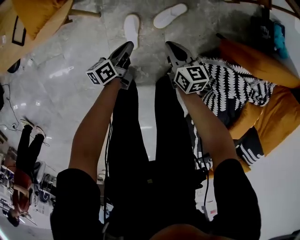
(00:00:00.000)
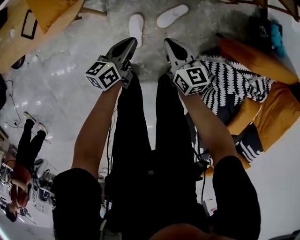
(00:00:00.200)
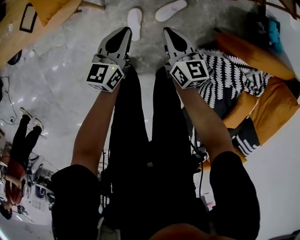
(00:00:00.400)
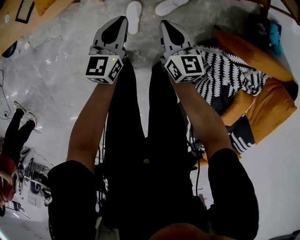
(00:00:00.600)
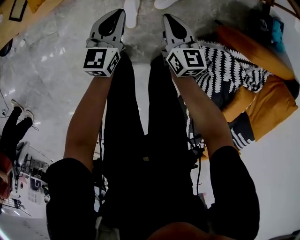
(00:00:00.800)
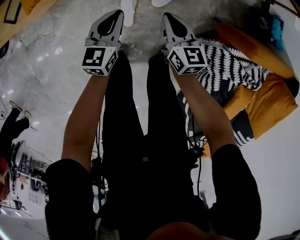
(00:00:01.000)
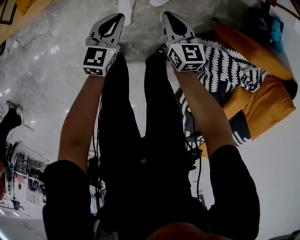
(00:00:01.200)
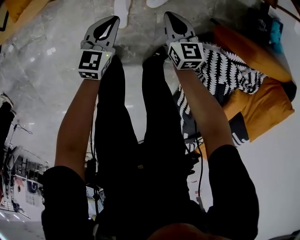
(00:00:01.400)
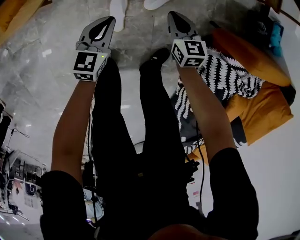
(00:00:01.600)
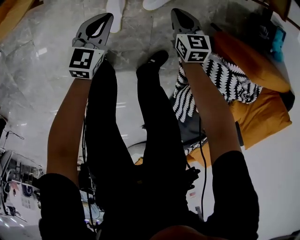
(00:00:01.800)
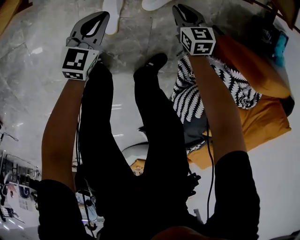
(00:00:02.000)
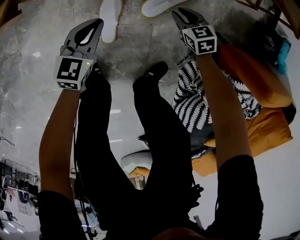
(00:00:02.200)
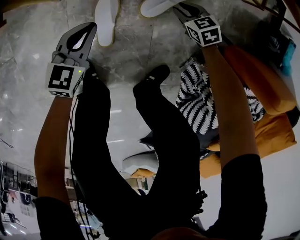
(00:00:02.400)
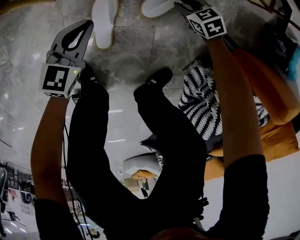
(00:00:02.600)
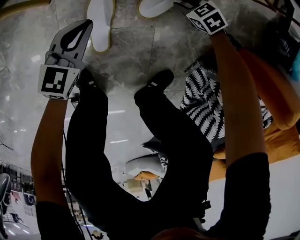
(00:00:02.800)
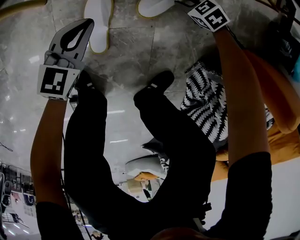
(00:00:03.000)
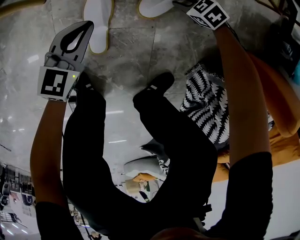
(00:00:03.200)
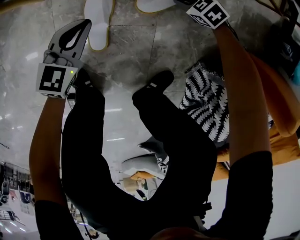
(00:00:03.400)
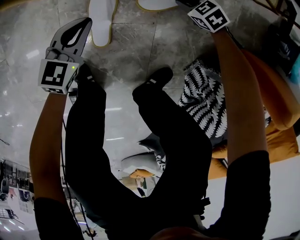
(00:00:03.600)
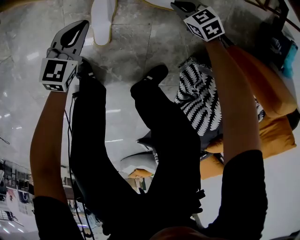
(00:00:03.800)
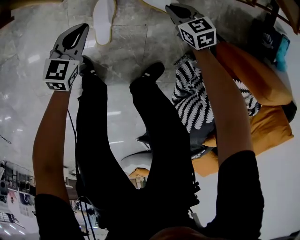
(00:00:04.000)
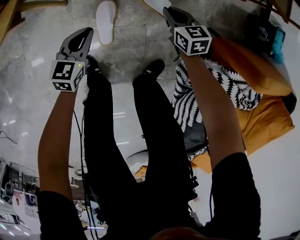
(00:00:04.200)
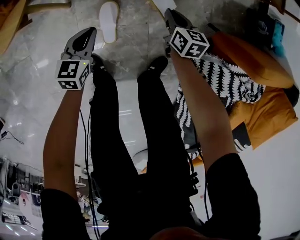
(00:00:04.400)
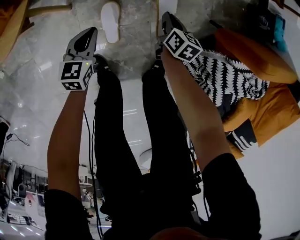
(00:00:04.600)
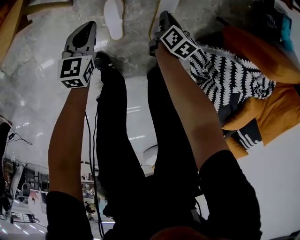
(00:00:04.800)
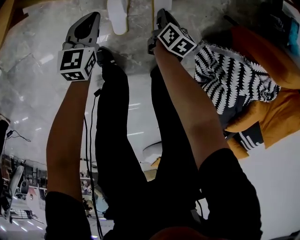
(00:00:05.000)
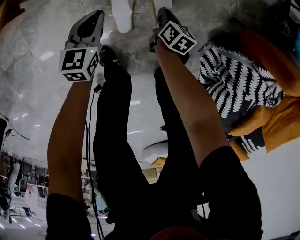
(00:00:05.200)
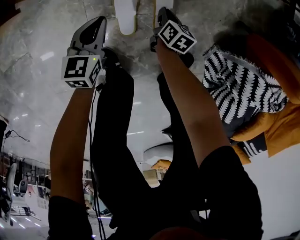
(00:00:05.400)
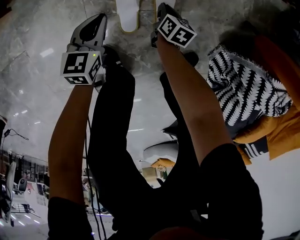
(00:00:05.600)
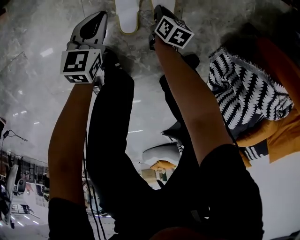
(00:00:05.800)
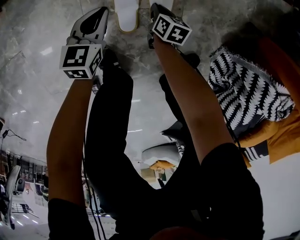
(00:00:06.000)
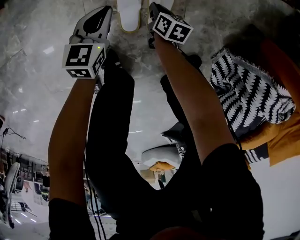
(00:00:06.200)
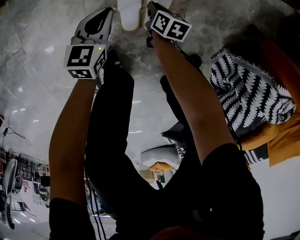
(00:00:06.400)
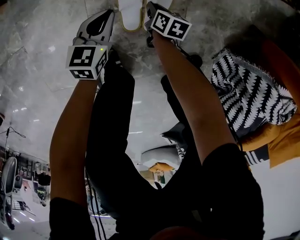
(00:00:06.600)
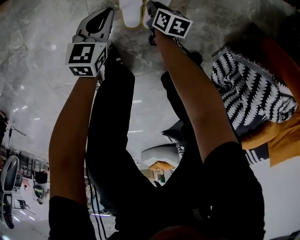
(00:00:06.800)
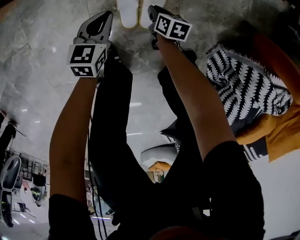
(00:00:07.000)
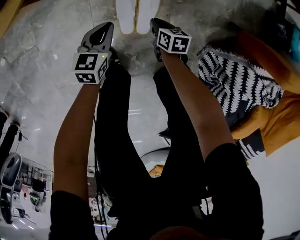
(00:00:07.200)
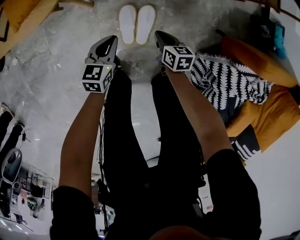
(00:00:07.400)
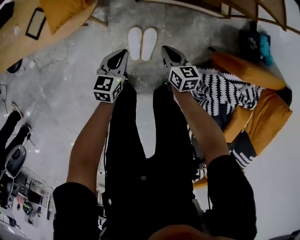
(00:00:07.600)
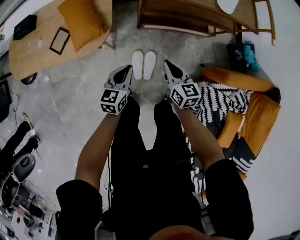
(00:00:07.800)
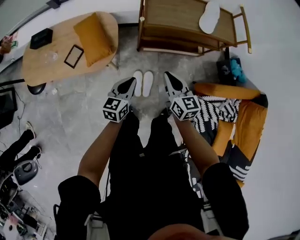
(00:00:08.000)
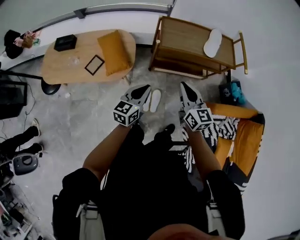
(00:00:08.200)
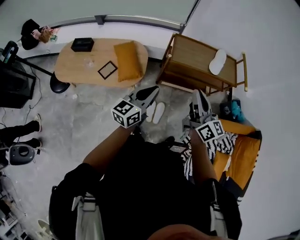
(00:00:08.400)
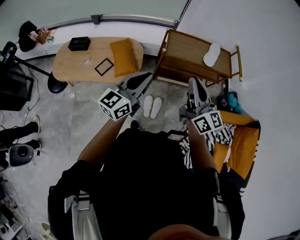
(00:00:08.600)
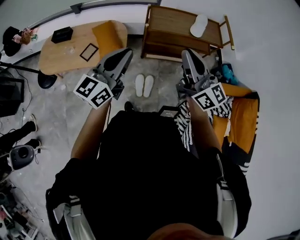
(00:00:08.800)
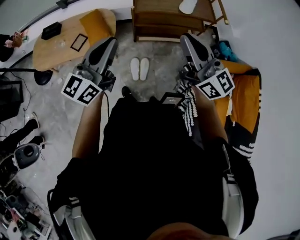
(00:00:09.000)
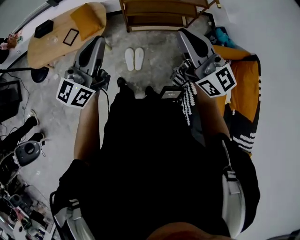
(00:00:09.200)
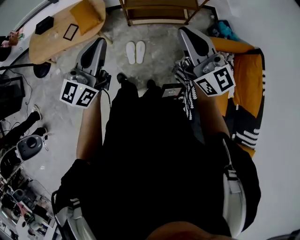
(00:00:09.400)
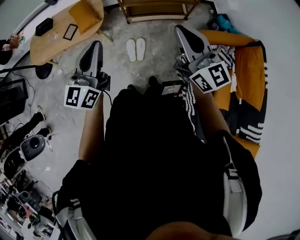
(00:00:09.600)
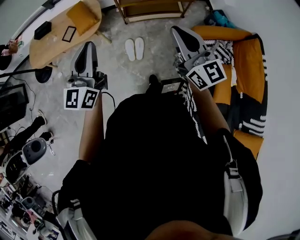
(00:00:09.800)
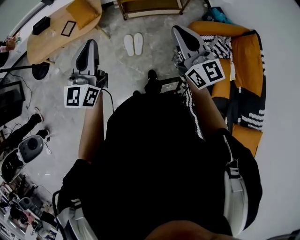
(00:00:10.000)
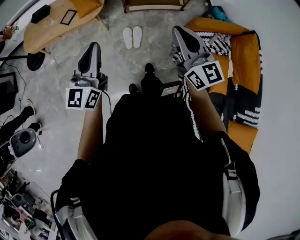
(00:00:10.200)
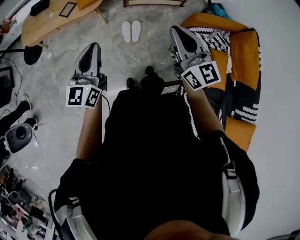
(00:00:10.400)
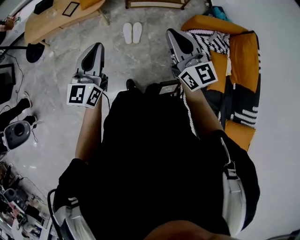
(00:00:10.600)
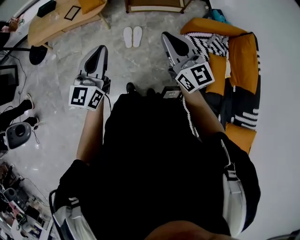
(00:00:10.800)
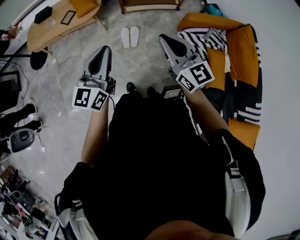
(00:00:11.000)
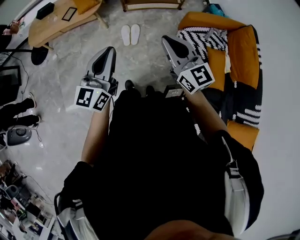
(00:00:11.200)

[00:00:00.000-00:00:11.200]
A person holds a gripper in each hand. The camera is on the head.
00:00:00.000 to 00:00:01.600: The right gripper goes some 5 cm forward, and travels upward and back again, about 10 cm each way; the left gripper moves approximately 15 cm upward and comes back, and rotates around the line of its fingers by roughly 50 degrees, clockwise from behind.
00:00:01.600 to 00:00:03.200: The right gripper goes approximately 35 cm downward, swivels some 60 degrees, and opens; the left gripper goes about 25 cm downward.
00:00:03.200 to 00:00:04.800: The right gripper is displaced upward by approximately 20 cm, rolls clockwise, seen from behind, by about 90 degrees, and closes. Meanwhile the left gripper moves upward, some 15 cm.
00:00:04.800 to 00:00:06.400: The left gripper is displaced downward and backward by roughly 15 cm, while the right gripper shifts about 25 cm downward and to the left, and turns by approximately 20 degrees.
00:00:06.400 to 00:00:08.000: Both grippers travel together upward, some 70 cm. The right gripper angles its fingers upward, by approximately 30 degrees.
00:00:08.000 to 00:00:09.600: The right gripper is displaced upward, backward and to the right by some 40 cm, and angles its fingers upward, by some 30 degrees. Meanwhile the left gripper moves upward and backward, roughly 40 cm, and changes its angle by some 30 degrees.
00:00:09.600 to 00:00:11.200: The two grippers go roughly 20 cm backward.

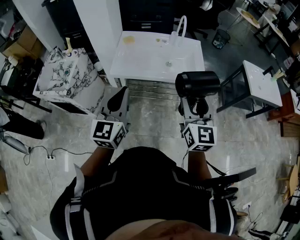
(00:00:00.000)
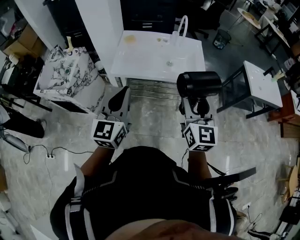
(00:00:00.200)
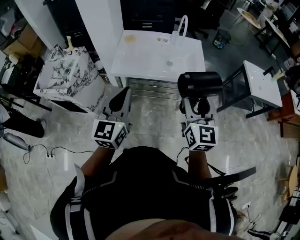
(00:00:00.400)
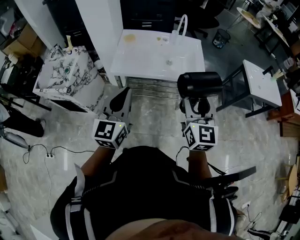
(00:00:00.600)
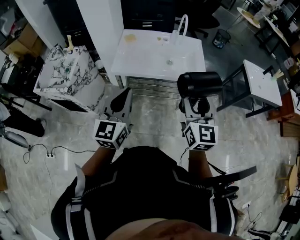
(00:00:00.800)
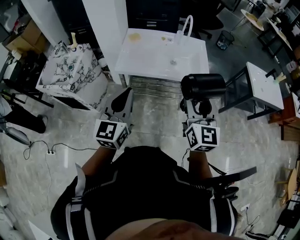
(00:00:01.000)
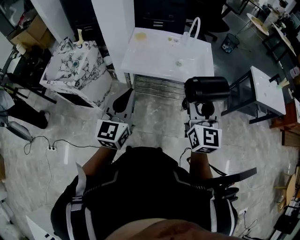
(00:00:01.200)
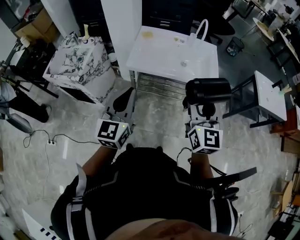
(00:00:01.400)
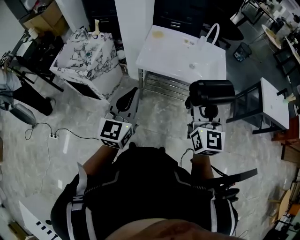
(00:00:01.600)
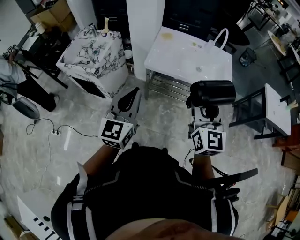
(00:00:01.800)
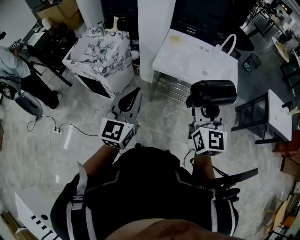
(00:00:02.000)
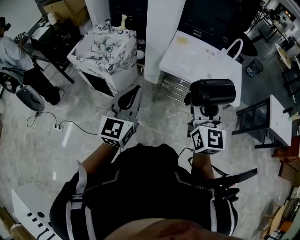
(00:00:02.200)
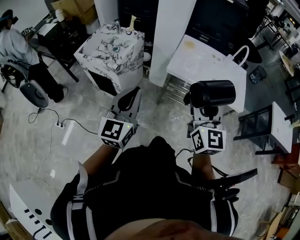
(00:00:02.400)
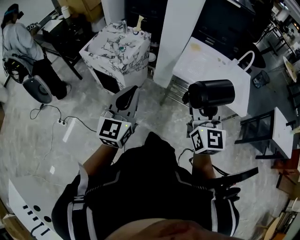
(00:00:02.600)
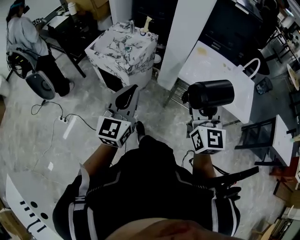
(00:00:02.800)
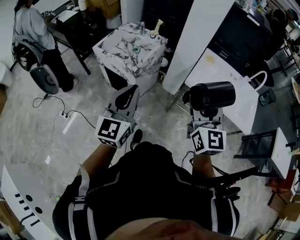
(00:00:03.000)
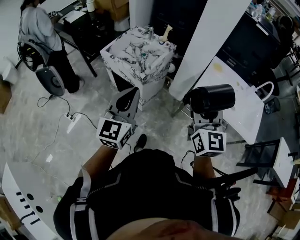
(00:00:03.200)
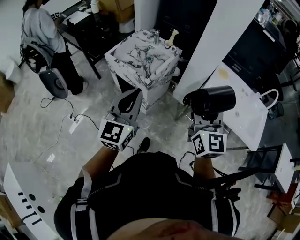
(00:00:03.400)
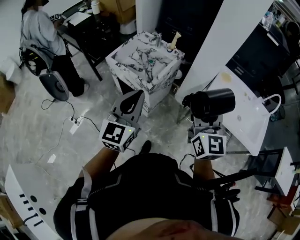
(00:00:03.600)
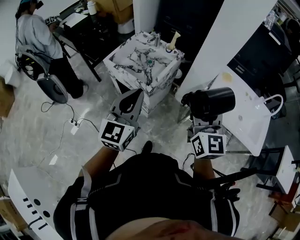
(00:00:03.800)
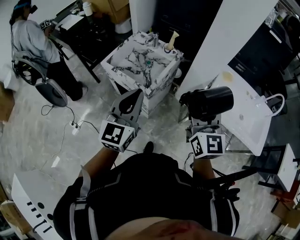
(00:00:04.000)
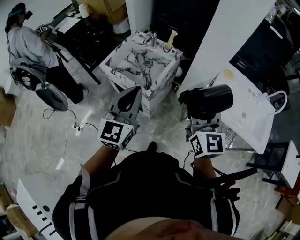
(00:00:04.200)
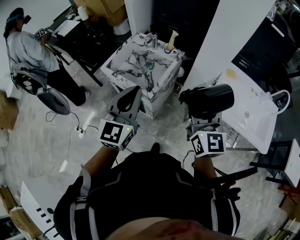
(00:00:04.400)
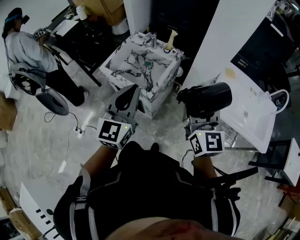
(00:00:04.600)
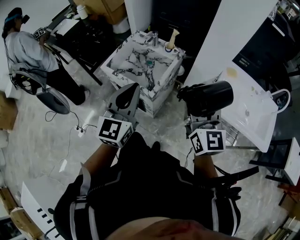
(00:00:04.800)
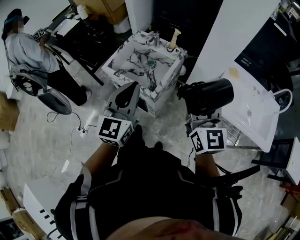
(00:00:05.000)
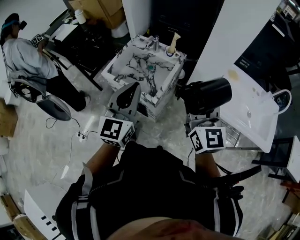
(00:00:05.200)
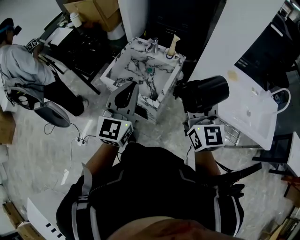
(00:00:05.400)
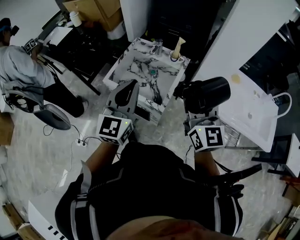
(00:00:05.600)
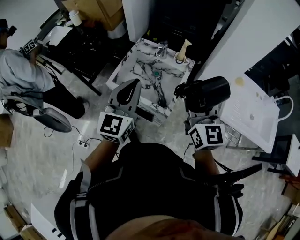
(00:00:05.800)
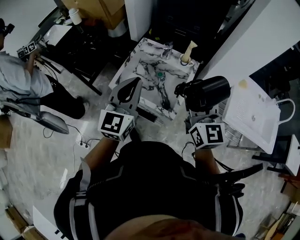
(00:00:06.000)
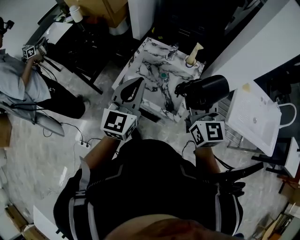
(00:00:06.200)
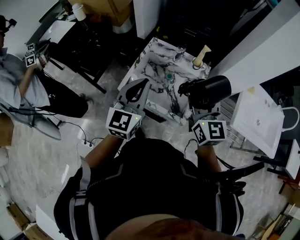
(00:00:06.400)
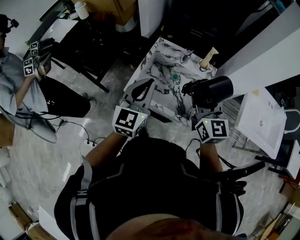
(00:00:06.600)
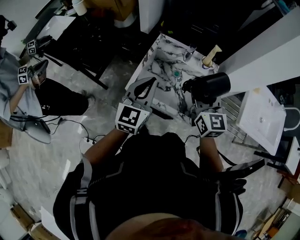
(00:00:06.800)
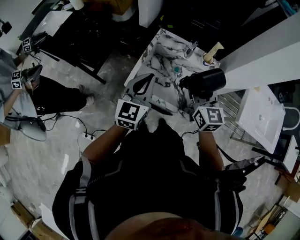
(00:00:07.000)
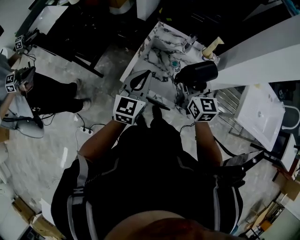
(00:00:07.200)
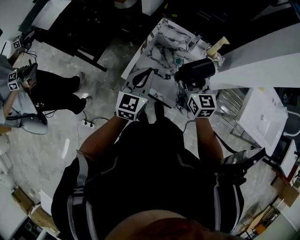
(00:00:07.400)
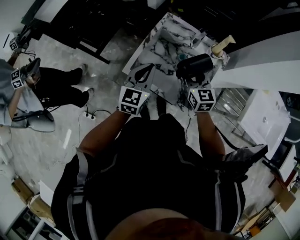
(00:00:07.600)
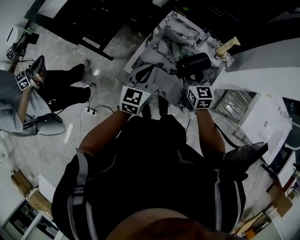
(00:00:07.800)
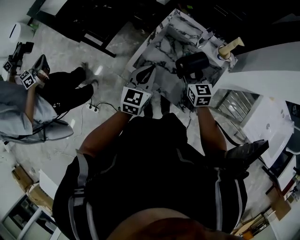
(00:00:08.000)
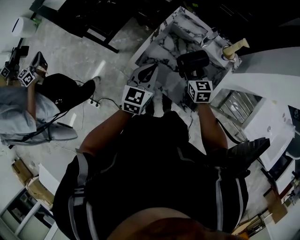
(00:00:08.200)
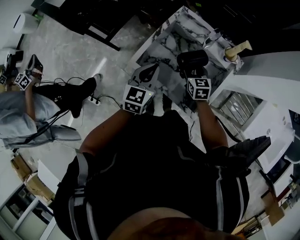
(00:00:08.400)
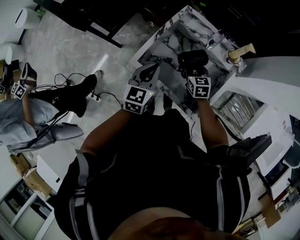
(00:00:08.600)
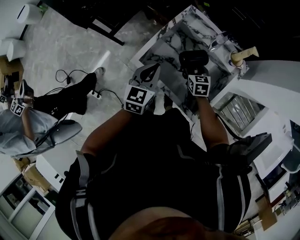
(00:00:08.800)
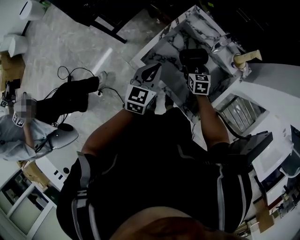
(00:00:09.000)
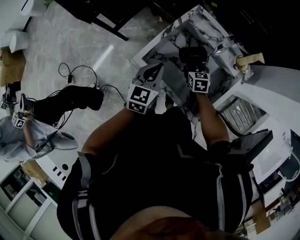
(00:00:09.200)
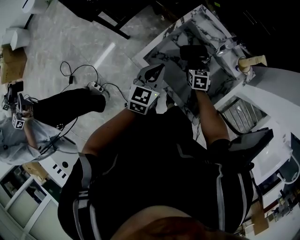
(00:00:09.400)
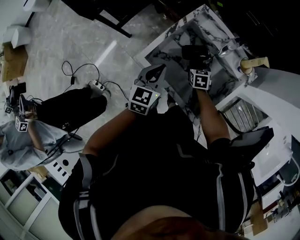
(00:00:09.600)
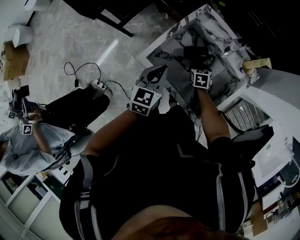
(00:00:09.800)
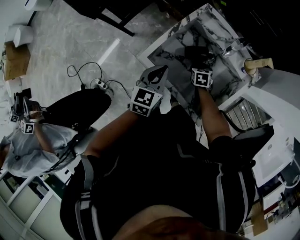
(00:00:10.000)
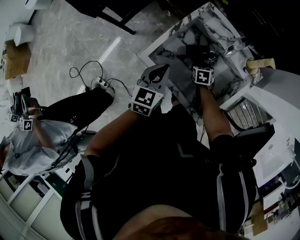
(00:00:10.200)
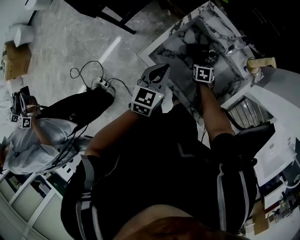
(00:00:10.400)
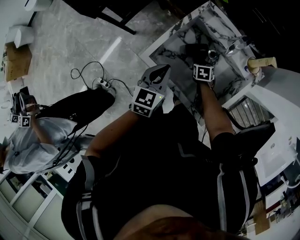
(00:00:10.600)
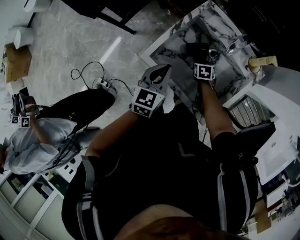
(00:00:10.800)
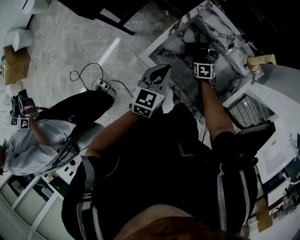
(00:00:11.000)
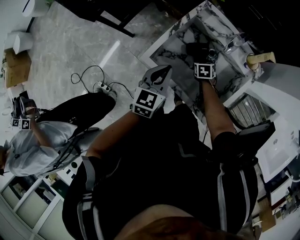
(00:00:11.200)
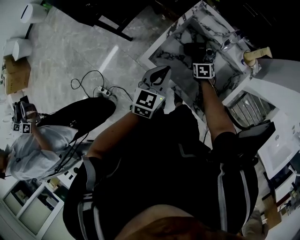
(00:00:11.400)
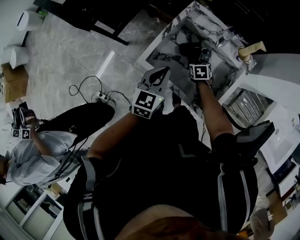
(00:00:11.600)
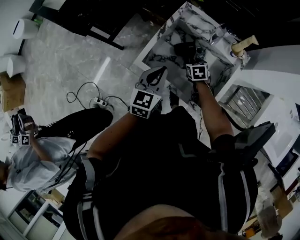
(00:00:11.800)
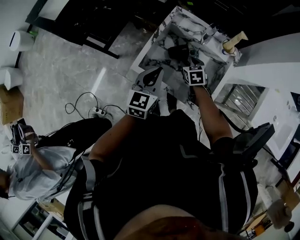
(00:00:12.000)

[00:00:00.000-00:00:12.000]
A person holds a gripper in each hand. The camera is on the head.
00:00:00.000 to 00:00:01.600: The right gripper travels to the left by about 10 cm. The left gripper is displaced to the left and backward by approximately 10 cm.
00:00:01.600 to 00:00:03.000: Both grippers move to the left, roughly 25 cm. The right gripper swivels roughly 20 degrees.
00:00:03.000 to 00:00:04.400: Both grippers move forward and to the left, approximately 20 cm.
00:00:04.400 to 00:00:06.000: Both grippers move to the left and forward, approximately 25 cm.
00:00:06.000 to 00:00:07.600: The grippers both shift downward, forward and to the left by some 25 cm. The right gripper rotates some 30 degrees.
00:00:07.600 to 00:00:09.000: The right gripper is displaced downward by approximately 20 cm, and turns by about 30 degrees. Meanwhile the left gripper goes roughly 5 cm downward.
00:00:09.000 to 00:00:10.400: The right gripper goes roughly 10 cm downward.
00:00:10.400 to 00:00:12.000: The left gripper heads upward, covering some 5 cm. Meanwhile the right gripper travels upward by about 10 cm.
